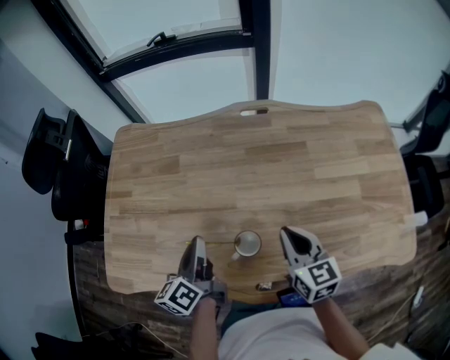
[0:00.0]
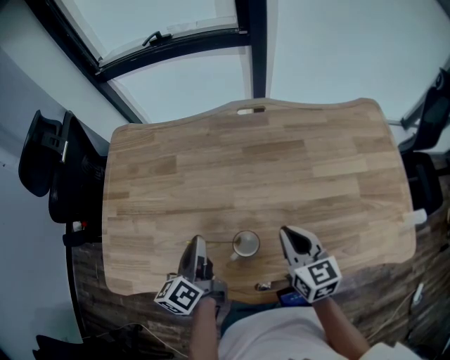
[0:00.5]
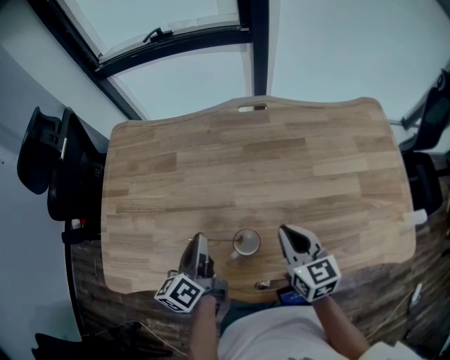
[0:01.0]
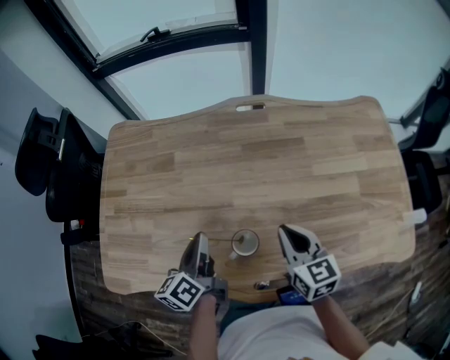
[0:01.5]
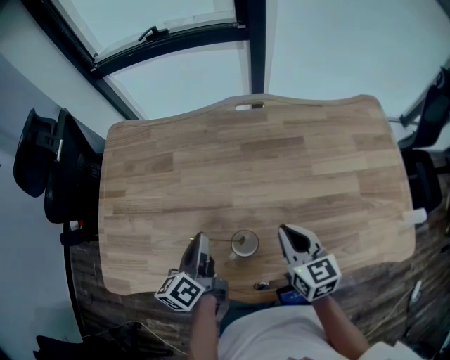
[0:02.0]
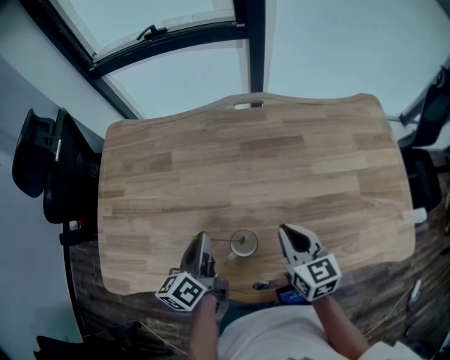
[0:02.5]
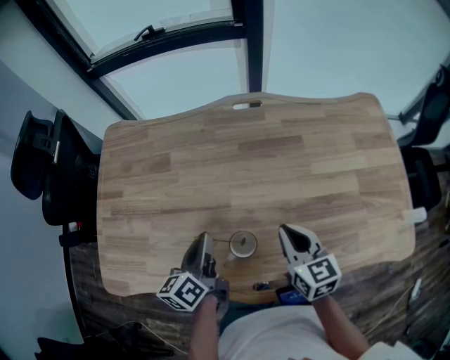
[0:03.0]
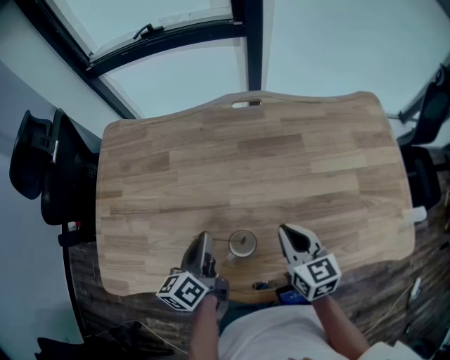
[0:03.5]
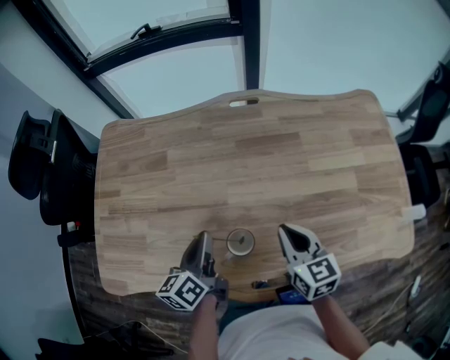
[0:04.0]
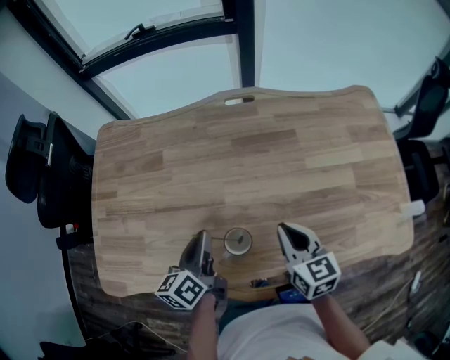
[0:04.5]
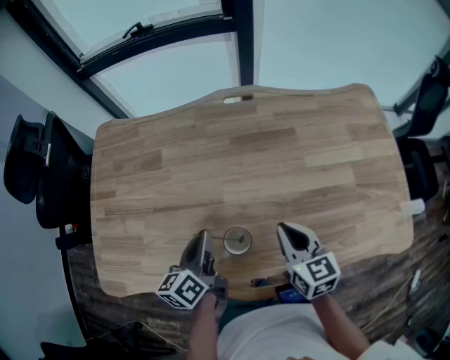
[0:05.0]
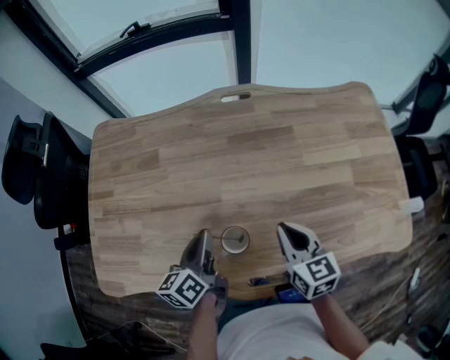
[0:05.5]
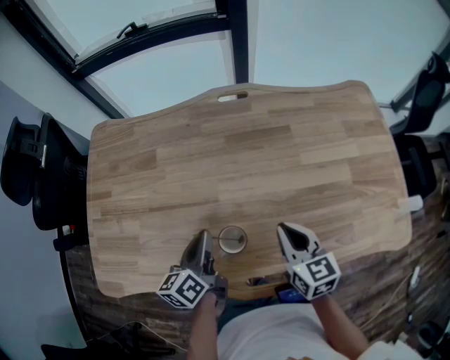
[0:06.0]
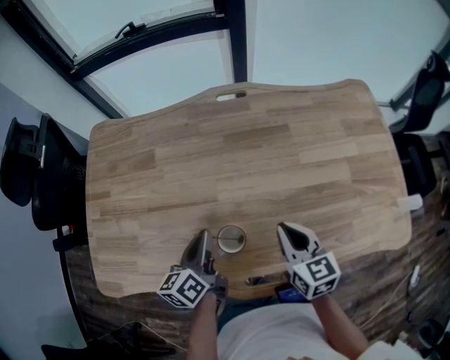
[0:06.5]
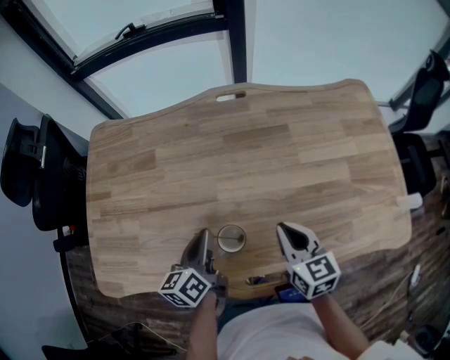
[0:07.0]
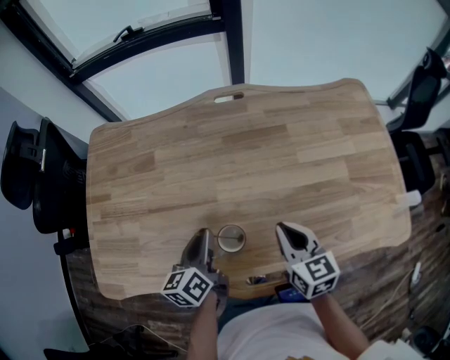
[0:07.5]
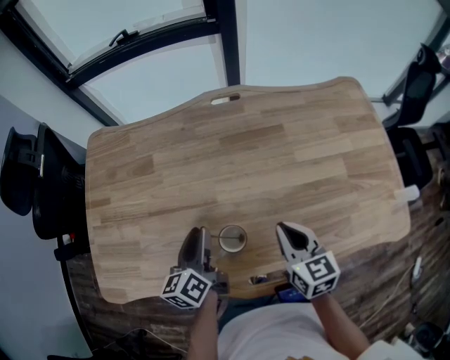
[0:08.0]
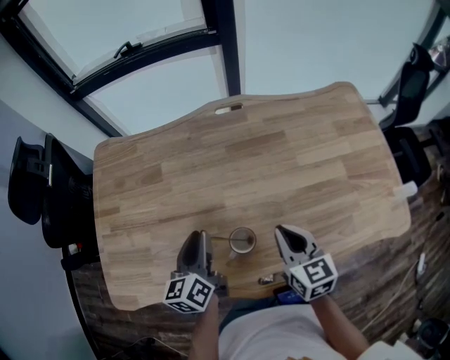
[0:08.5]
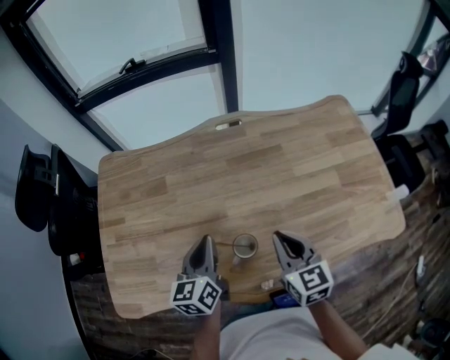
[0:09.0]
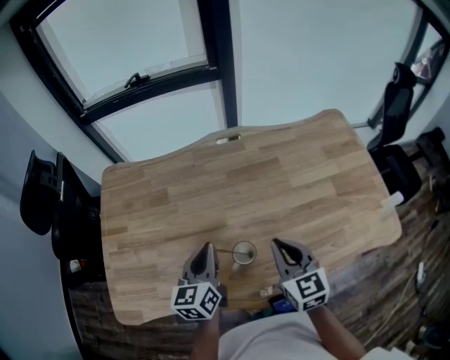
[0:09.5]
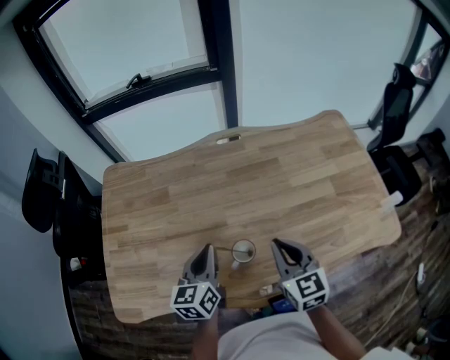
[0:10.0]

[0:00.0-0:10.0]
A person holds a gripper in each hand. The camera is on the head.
0:00.0 to 0:04.0: The grippers stay close to where they were, moving slightly.
0:04.0 to 0:06.0: The grippers make only small movements.
0:06.0 to 0:08.0: The left gripper opens its fingers.
0:08.0 to 0:10.0: Both grippers move upward, approximately 10 cm. The left gripper rotates roughly 20 degrees, and closes its fingers.

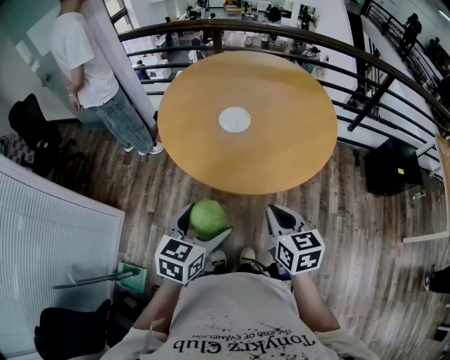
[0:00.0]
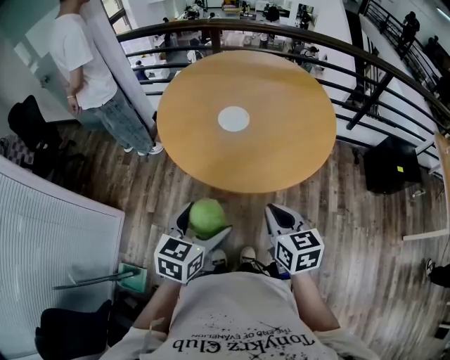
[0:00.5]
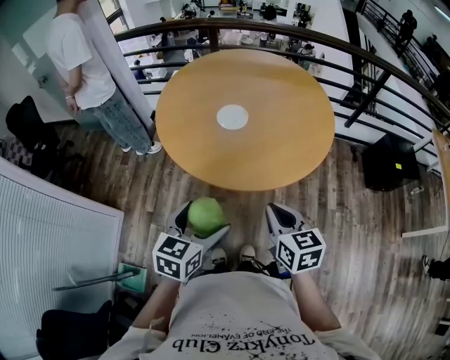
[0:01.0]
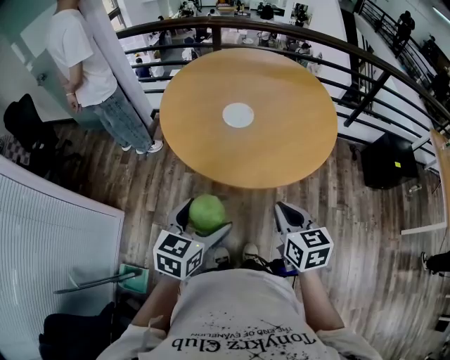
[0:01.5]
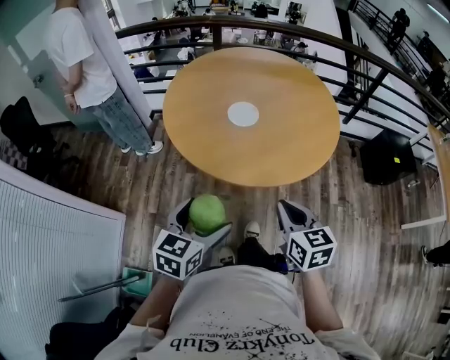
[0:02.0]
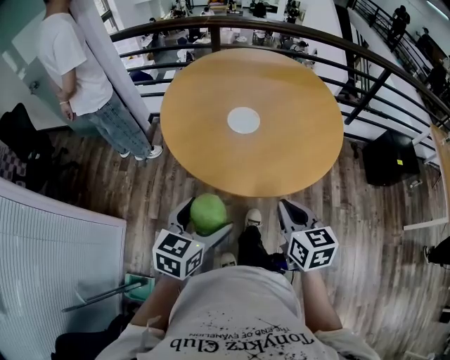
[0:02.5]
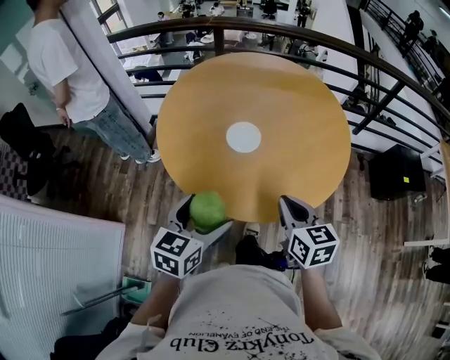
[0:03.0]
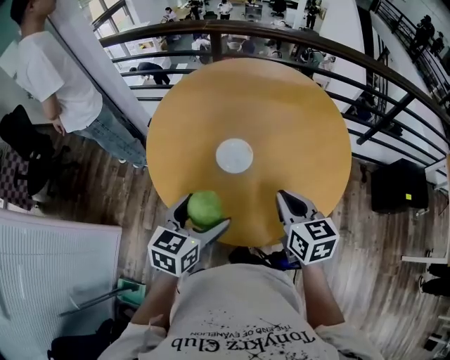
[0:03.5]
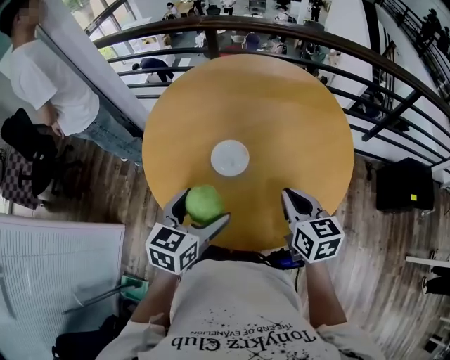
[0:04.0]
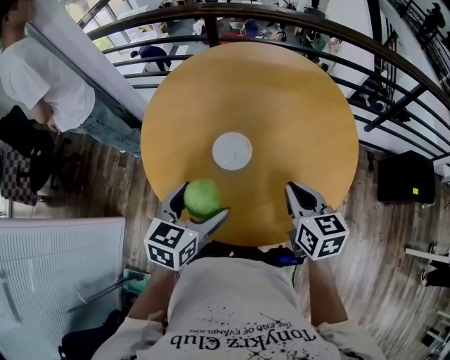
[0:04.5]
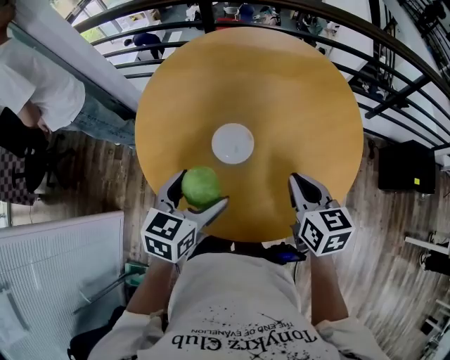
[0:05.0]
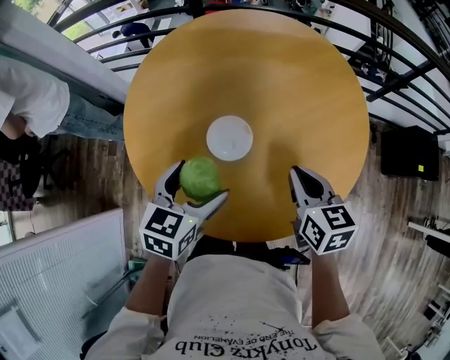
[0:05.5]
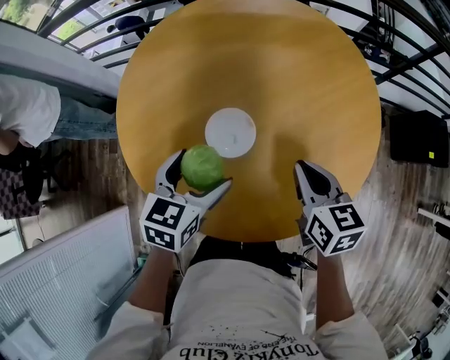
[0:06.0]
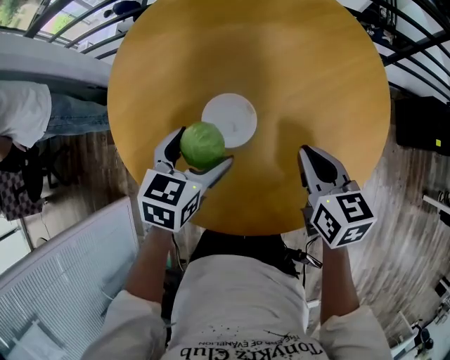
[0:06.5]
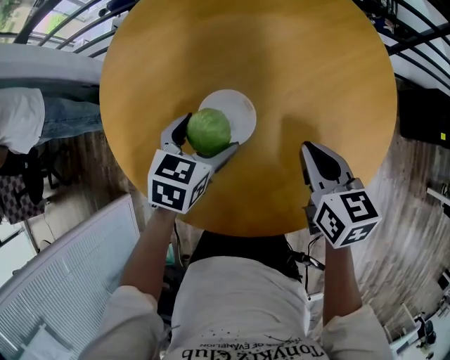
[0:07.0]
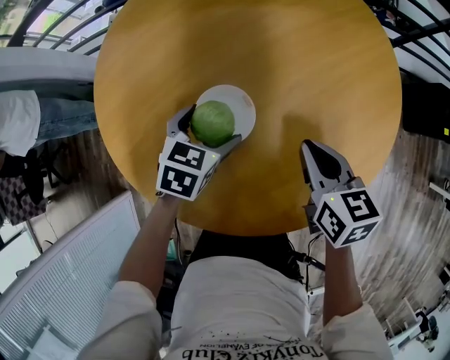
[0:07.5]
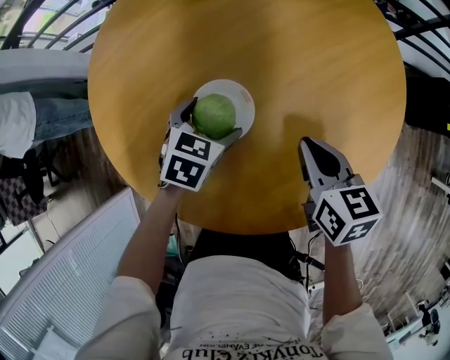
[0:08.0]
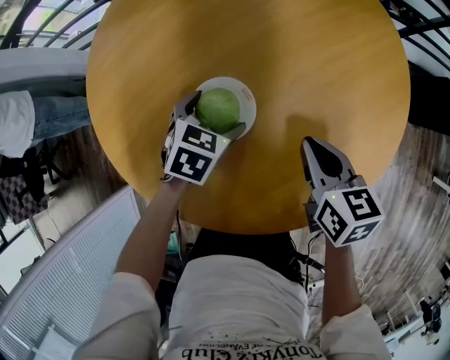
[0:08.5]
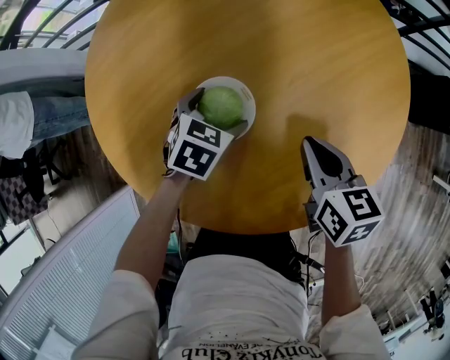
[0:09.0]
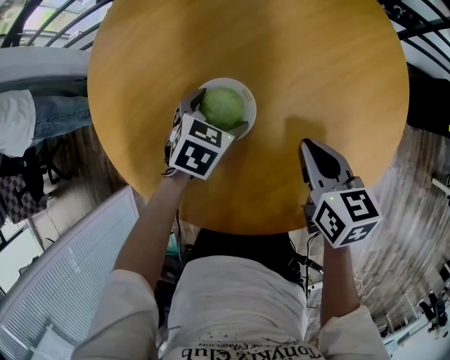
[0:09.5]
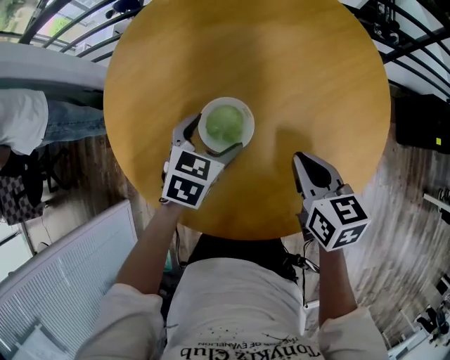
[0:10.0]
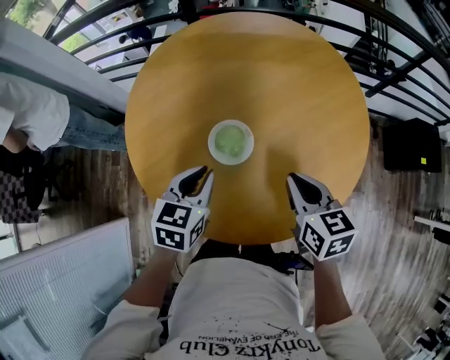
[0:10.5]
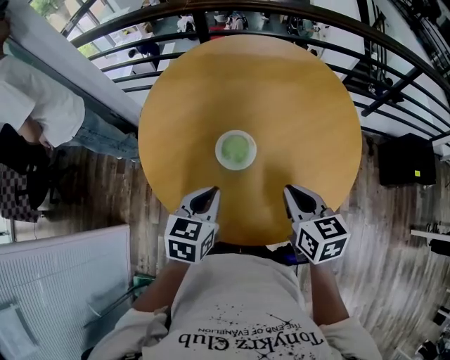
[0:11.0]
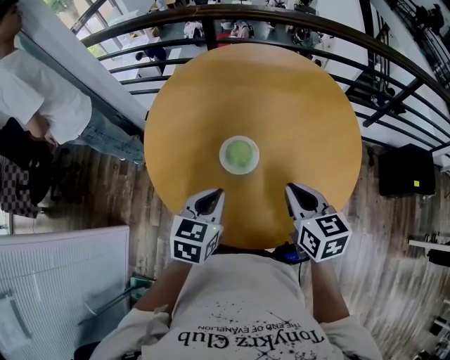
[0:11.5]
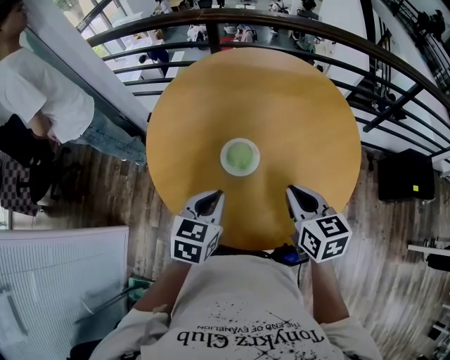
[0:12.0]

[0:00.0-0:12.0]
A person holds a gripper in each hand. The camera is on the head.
0:00.0 to 0:02.0: The left gripper shifts approximately 10 cm to the left. Meanwhile the right gripper goes roughly 5 cm to the left.
0:02.0 to 0:04.0: Both grippers move forward, approximately 35 cm.
0:04.0 to 0:06.0: Both grippers travel together forward and downward, approximately 15 cm.
0:06.0 to 0:08.0: The right gripper travels downward by roughly 10 cm; the left gripper is displaced downward and forward by some 20 cm, and turns by approximately 20 degrees.
0:08.0 to 0:10.0: The left gripper goes roughly 5 cm upward.
0:10.0 to 0:12.0: The left gripper travels backward and upward by roughly 25 cm, turns by roughly 20 degrees, and closes up, while the right gripper is displaced upward, backward and to the left by about 20 cm.

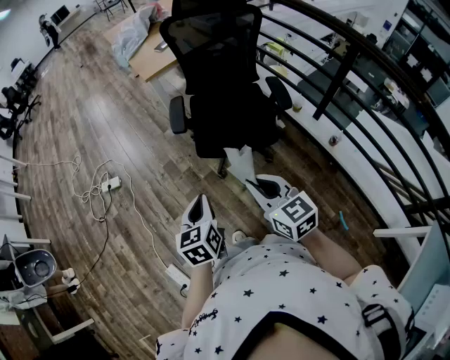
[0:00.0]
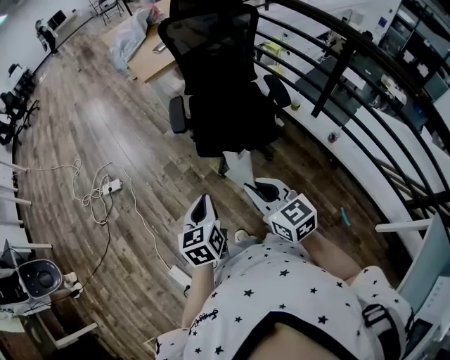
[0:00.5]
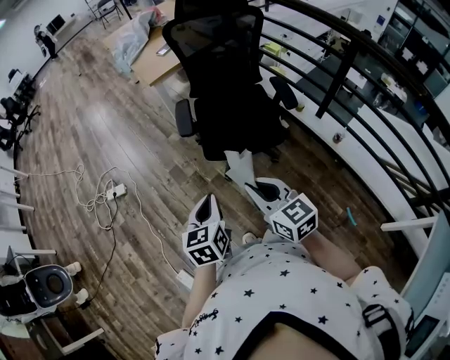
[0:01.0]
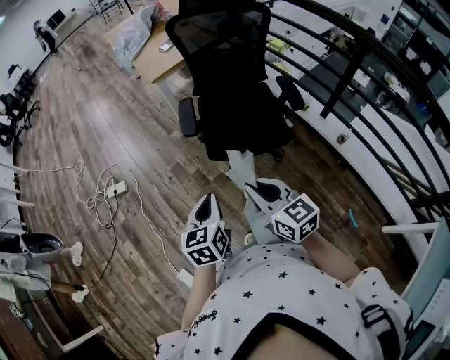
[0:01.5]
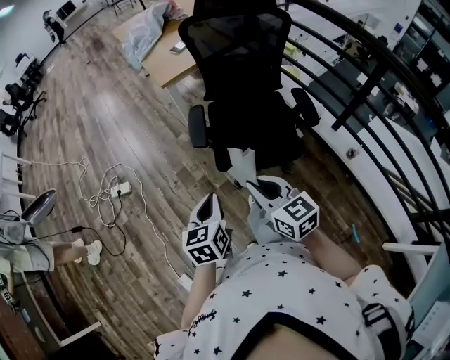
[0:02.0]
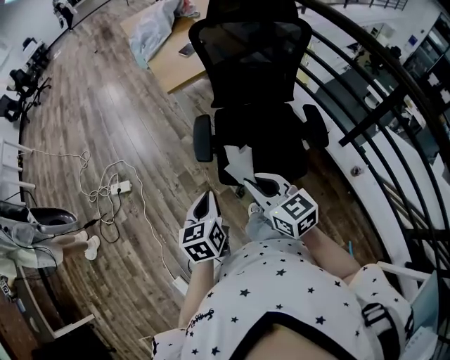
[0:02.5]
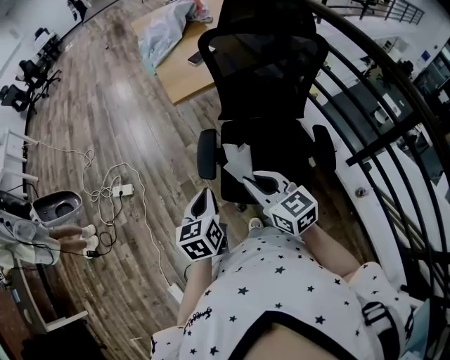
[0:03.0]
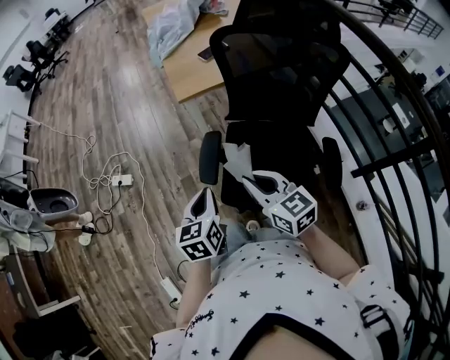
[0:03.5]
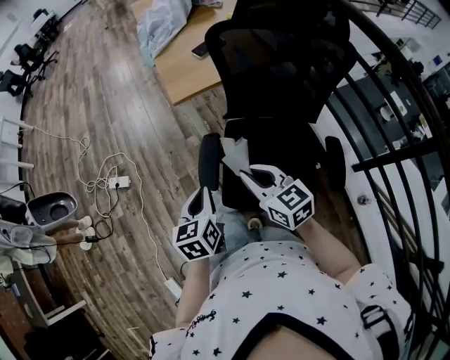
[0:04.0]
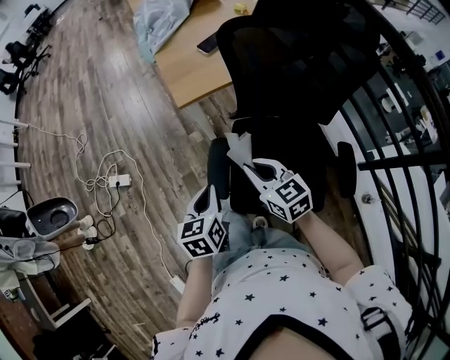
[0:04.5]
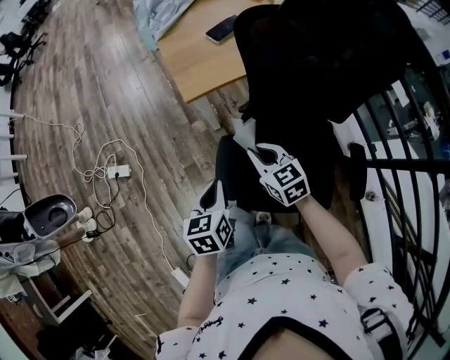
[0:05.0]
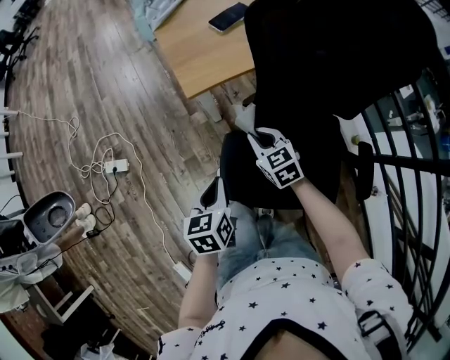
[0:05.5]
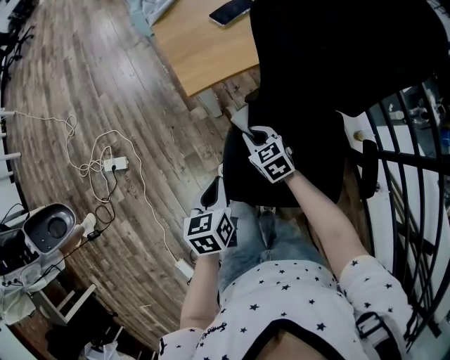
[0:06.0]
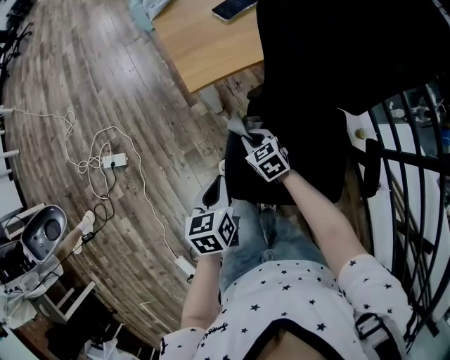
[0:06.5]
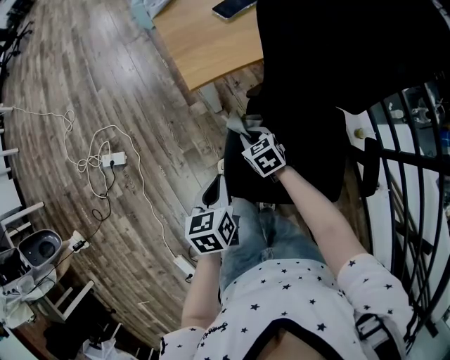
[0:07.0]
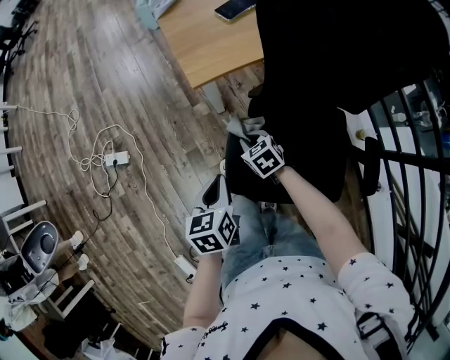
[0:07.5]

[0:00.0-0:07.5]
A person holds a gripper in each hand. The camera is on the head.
0:00.0 to 0:02.0: The right gripper is displaced forward and to the left by about 15 cm, while the left gripper shifts roughly 10 cm forward.
0:02.0 to 0:04.0: Both grippers travel together forward, some 25 cm.
0:04.0 to 0:05.5: The left gripper is displaced forward and downward by roughly 15 cm, while the right gripper goes approximately 25 cm forward and downward, and changes its angle by approximately 20 degrees.
0:05.5 to 0:07.5: The right gripper goes roughly 10 cm downward.
